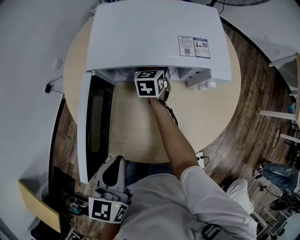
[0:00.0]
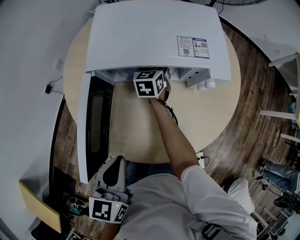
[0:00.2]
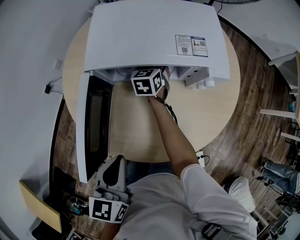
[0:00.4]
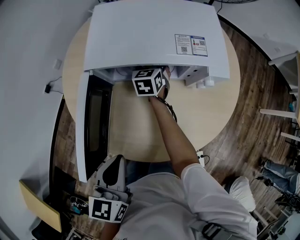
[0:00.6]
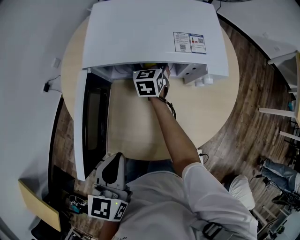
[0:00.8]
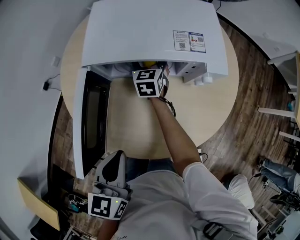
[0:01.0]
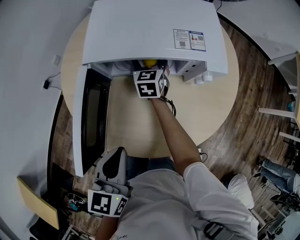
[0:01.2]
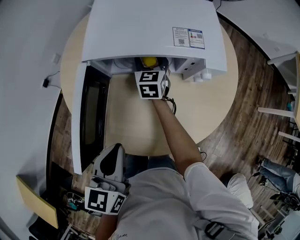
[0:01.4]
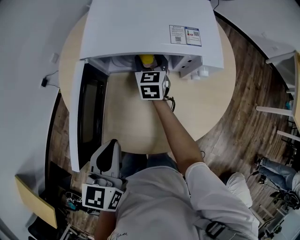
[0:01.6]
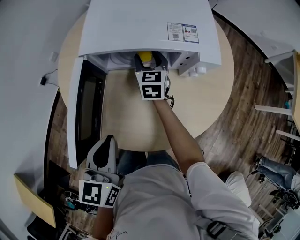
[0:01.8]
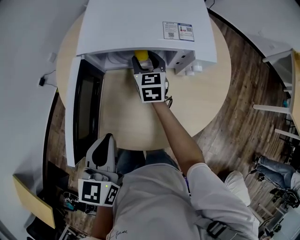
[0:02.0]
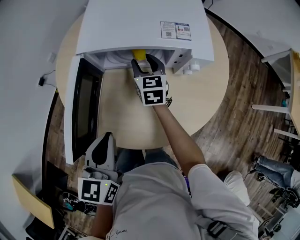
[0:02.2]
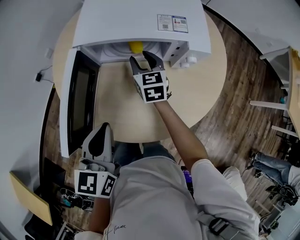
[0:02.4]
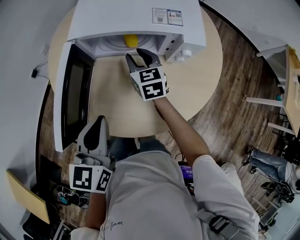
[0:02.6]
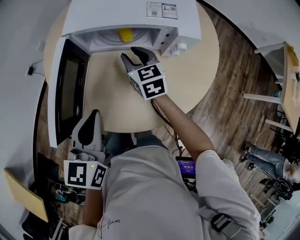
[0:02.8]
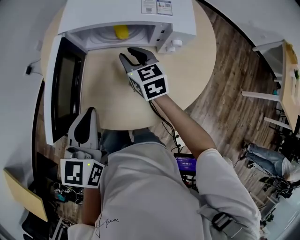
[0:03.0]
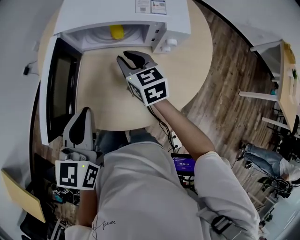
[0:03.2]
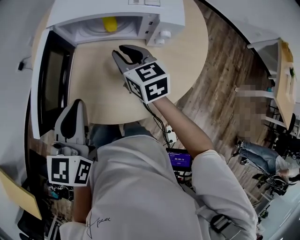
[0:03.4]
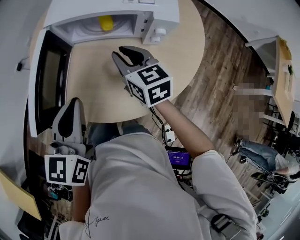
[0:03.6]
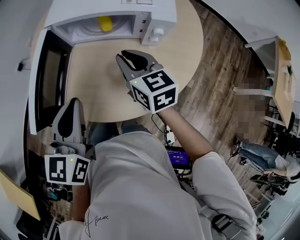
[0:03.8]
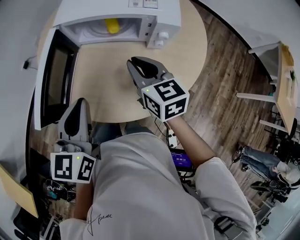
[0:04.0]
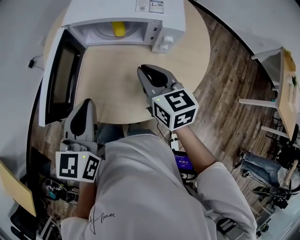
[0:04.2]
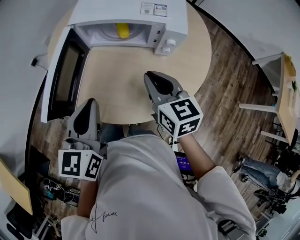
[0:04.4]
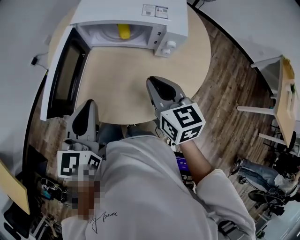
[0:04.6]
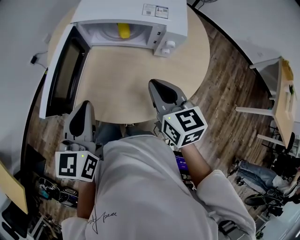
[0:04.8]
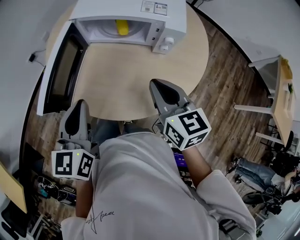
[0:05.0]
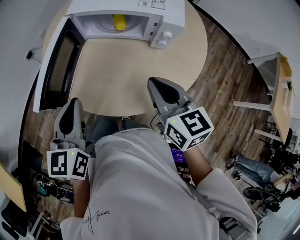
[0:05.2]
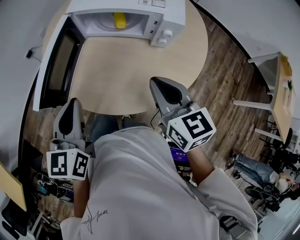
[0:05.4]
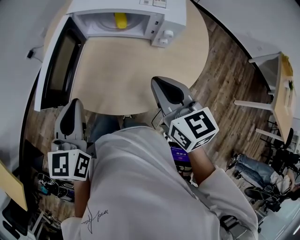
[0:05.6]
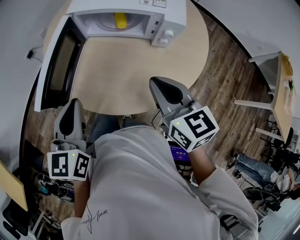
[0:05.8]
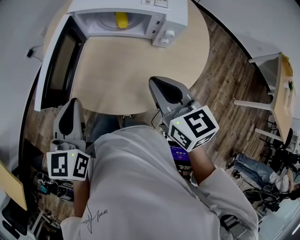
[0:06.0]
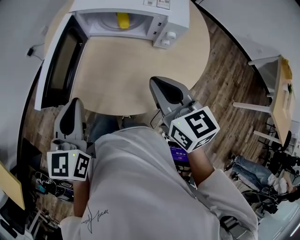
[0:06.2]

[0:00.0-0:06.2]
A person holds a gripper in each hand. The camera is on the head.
0:00.0 to 0:01.6: The right gripper ends up approximately 5 cm from where it was.
0:01.6 to 0:03.2: The right gripper moves backward and upward, some 15 cm, turns by about 20 degrees, and closes.
0:03.2 to 0:04.6: The left gripper moves approximately 5 cm, while the right gripper shifts approximately 15 cm backward, upward and to the right.
0:04.6 to 0:06.2: The right gripper changes place by some 5 cm.

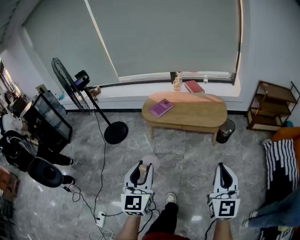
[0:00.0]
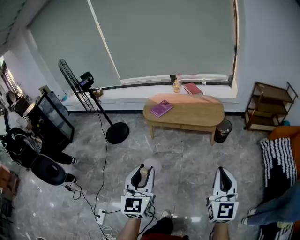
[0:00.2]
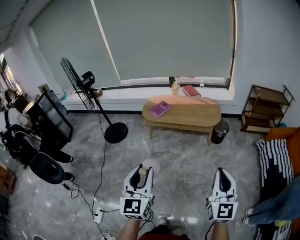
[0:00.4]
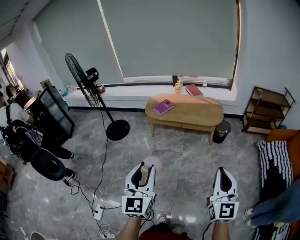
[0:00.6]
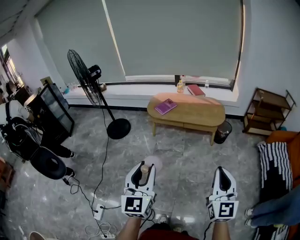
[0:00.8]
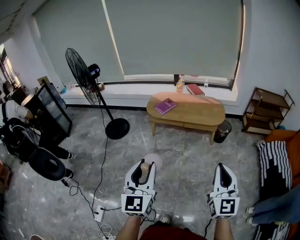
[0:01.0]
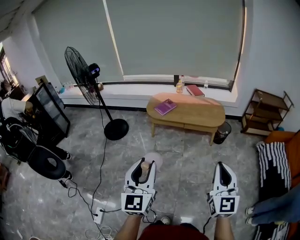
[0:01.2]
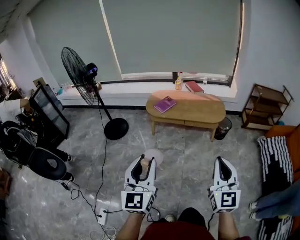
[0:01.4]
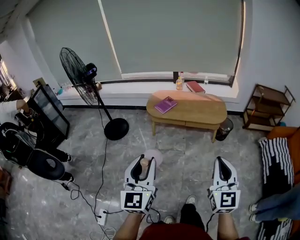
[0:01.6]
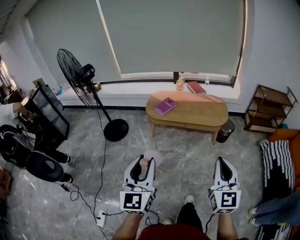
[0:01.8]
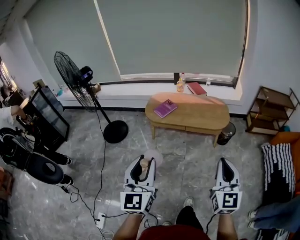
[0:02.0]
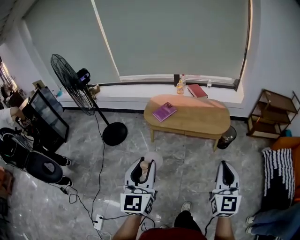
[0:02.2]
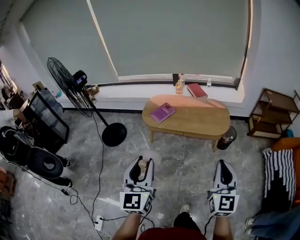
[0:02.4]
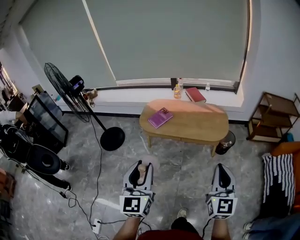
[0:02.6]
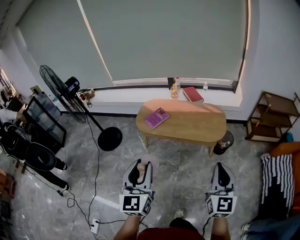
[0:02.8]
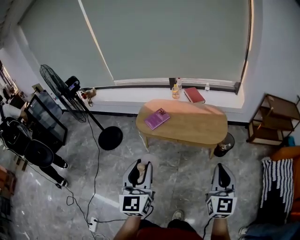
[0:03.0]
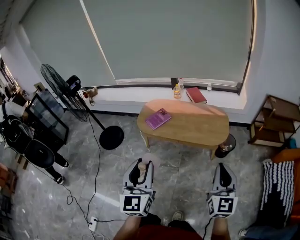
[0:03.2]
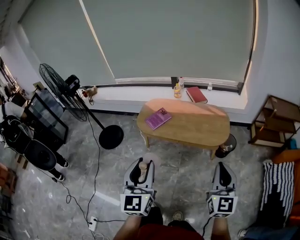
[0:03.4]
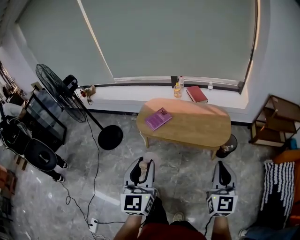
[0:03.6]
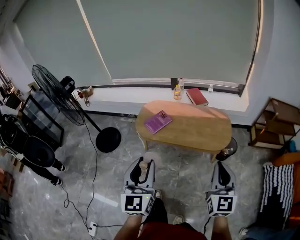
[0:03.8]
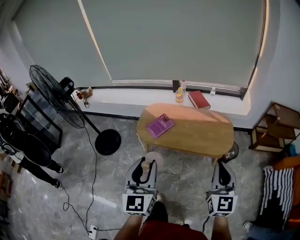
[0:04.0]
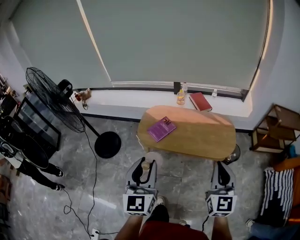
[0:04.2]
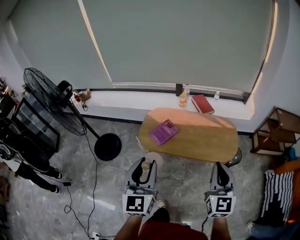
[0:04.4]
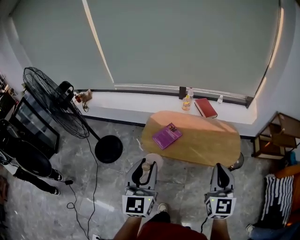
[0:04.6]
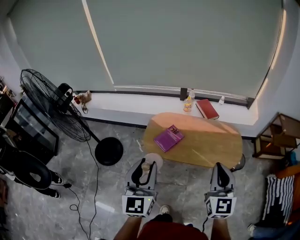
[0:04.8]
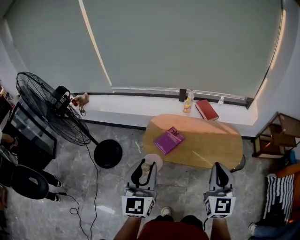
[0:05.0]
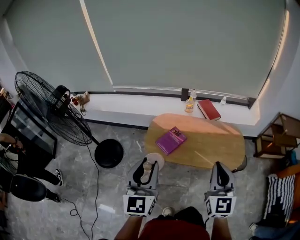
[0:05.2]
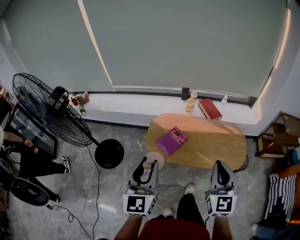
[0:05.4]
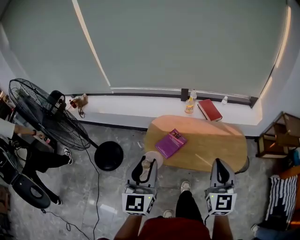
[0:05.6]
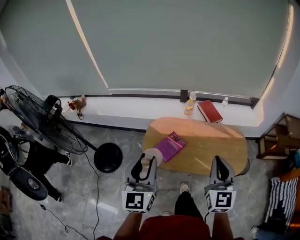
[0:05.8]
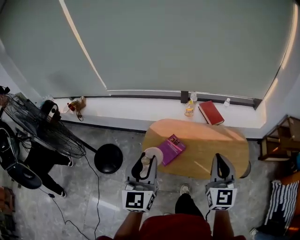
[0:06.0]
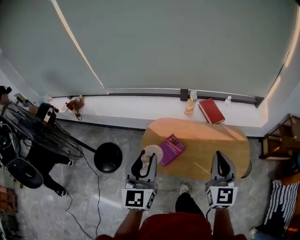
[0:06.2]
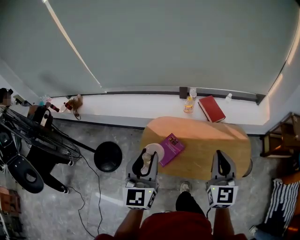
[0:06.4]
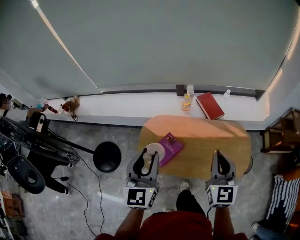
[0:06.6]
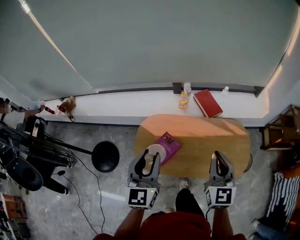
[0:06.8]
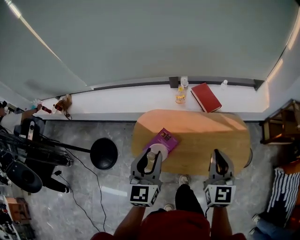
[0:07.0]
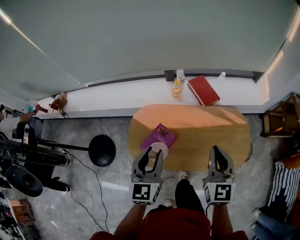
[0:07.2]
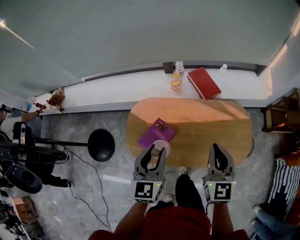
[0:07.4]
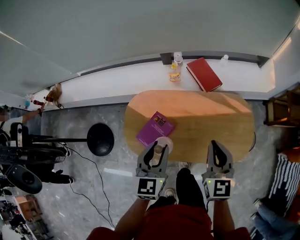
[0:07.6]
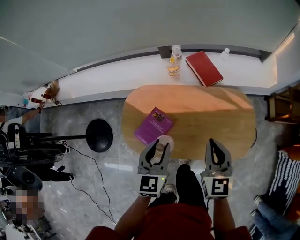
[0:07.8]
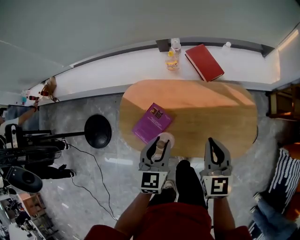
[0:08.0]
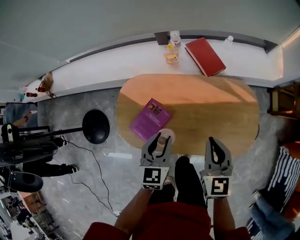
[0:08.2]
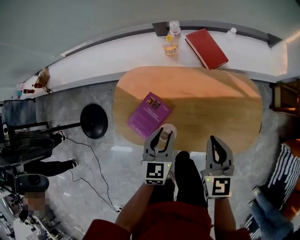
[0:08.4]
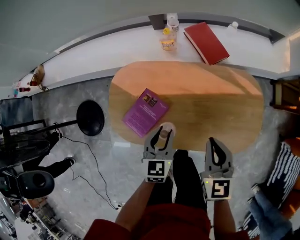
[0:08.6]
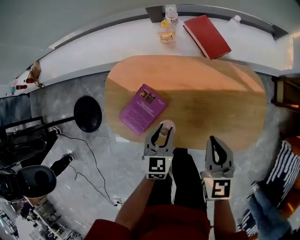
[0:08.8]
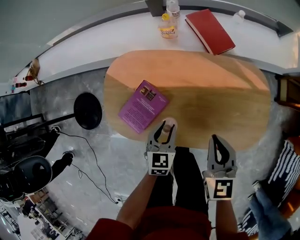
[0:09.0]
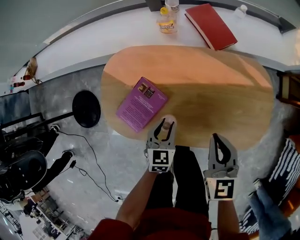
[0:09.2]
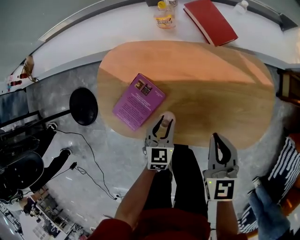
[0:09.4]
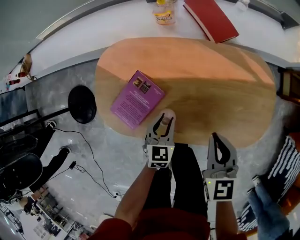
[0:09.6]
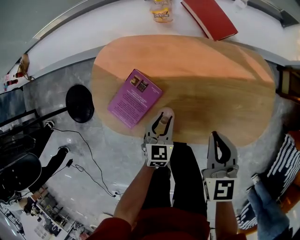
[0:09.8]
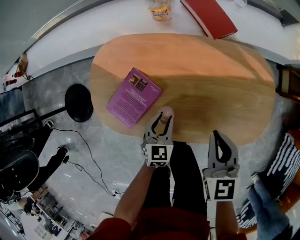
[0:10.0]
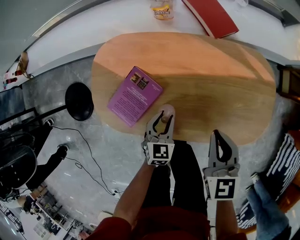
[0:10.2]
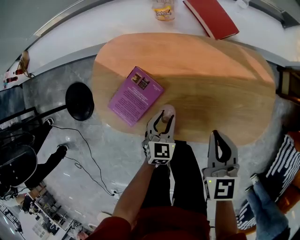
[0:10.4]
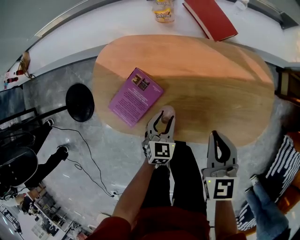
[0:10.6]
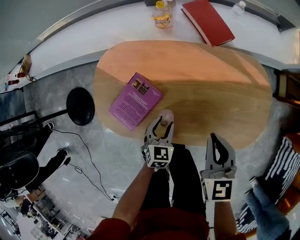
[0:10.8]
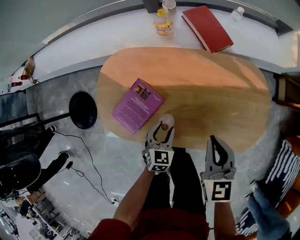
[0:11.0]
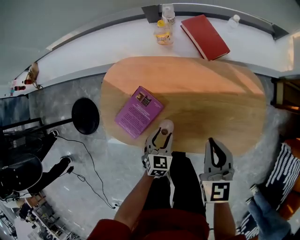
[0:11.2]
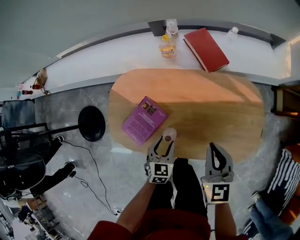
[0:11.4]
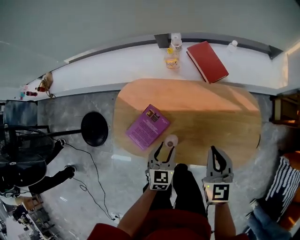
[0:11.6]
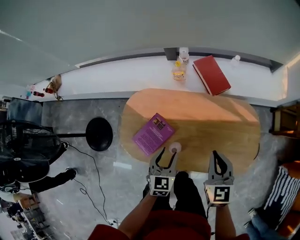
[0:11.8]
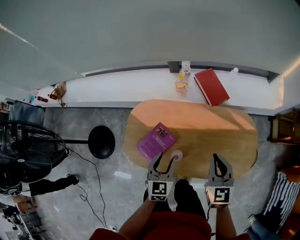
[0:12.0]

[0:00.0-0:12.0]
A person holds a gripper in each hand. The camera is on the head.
0:00.0 to 0:01.6: The right gripper shifts roughly 15 cm to the left and backward, while the left gripper is displaced to the left, backward and upward by approximately 15 cm.
0:01.6 to 0:03.0: Both grippers move forward and to the right, approximately 30 cm.
0:03.0 to 0:04.4: The grippers both shift forward and to the left by approximately 25 cm.
0:04.4 to 0:06.0: Both grippers move forward, about 25 cm.
0:06.0 to 0:07.6: The grippers both shift downward, forward and to the right by roughly 30 cm. The left gripper rotates approximately 30 degrees.
0:07.6 to 0:09.0: The left gripper goes about 30 cm downward, while the right gripper moves downward, about 20 cm.
0:09.0 to 0:10.4: The left gripper is displaced downward by approximately 10 cm.
0:10.4 to 0:12.0: The right gripper shifts approximately 15 cm upward. The left gripper heads upward, covering roughly 25 cm.

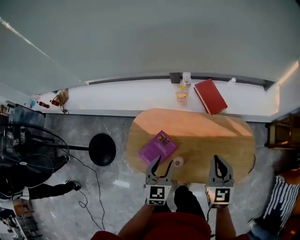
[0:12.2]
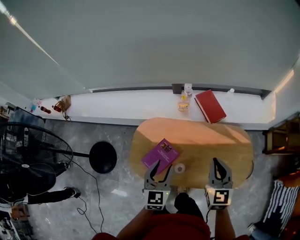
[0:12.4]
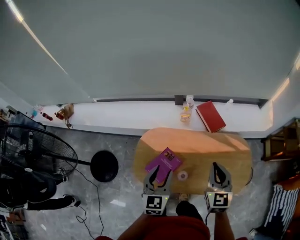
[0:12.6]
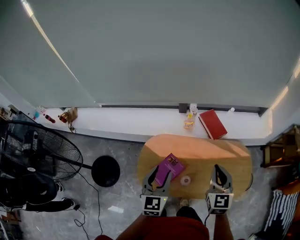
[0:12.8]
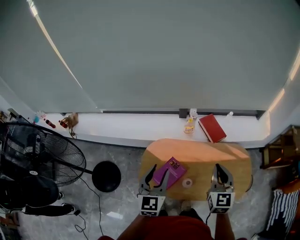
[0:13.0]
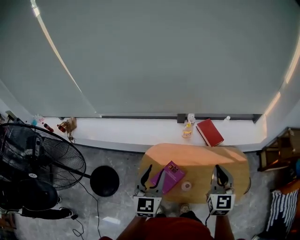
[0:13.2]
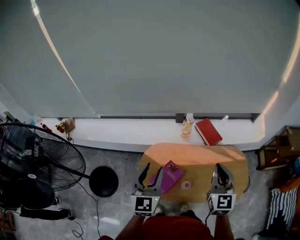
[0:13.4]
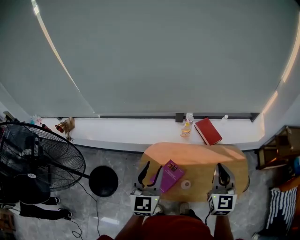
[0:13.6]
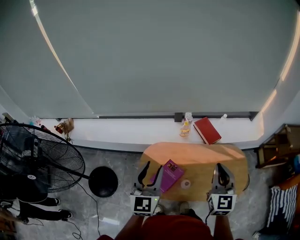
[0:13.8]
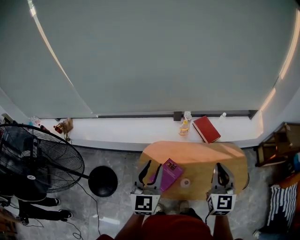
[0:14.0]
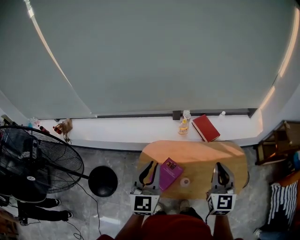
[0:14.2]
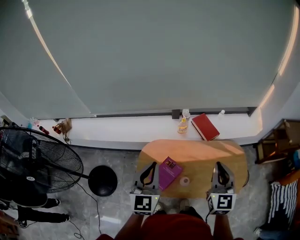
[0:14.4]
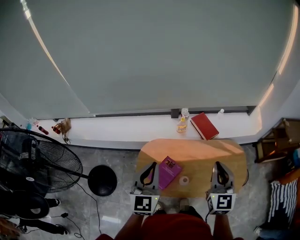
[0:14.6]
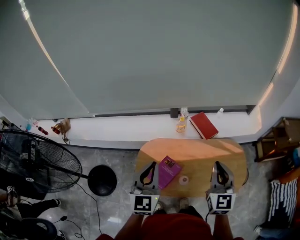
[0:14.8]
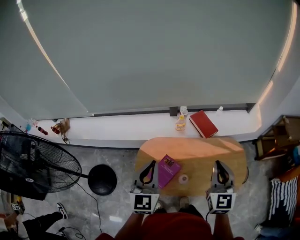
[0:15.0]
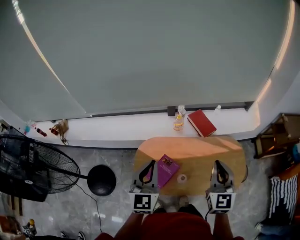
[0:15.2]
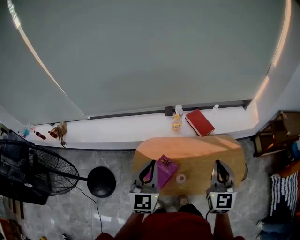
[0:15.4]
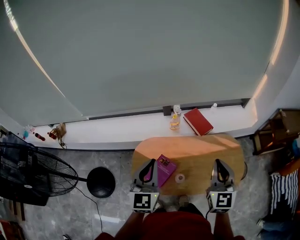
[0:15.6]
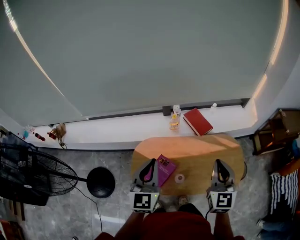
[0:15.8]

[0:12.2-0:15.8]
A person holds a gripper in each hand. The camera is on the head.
0:12.2 to 0:14.0: The grippers both shift upward and to the left by about 25 cm. The left gripper rotates about 20 degrees.
0:14.0 to 0:15.8: The grippers both shift to the right by about 5 cm. The left gripper closes up.

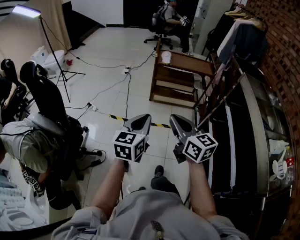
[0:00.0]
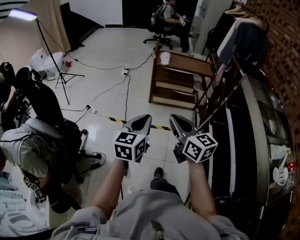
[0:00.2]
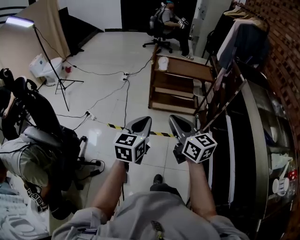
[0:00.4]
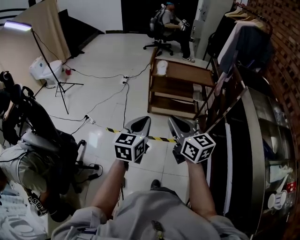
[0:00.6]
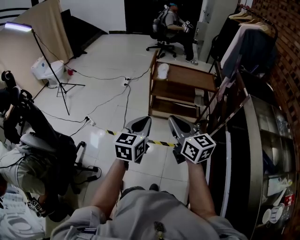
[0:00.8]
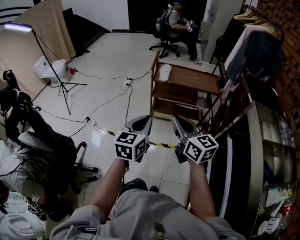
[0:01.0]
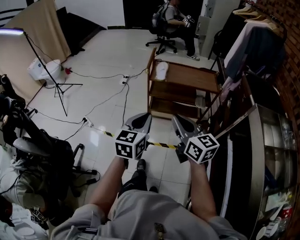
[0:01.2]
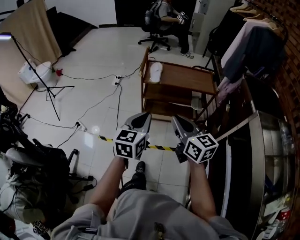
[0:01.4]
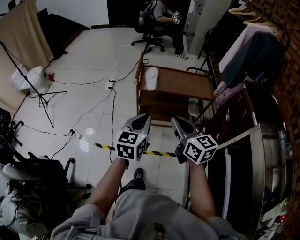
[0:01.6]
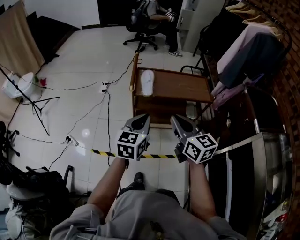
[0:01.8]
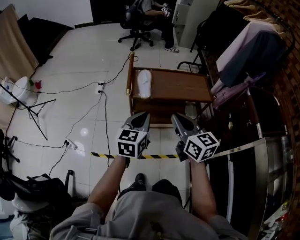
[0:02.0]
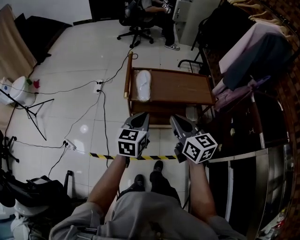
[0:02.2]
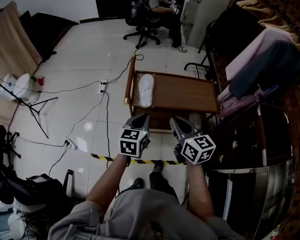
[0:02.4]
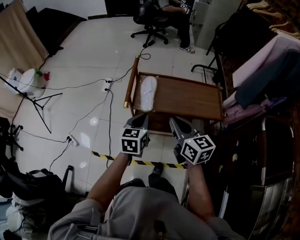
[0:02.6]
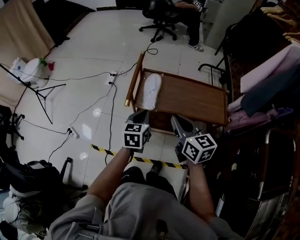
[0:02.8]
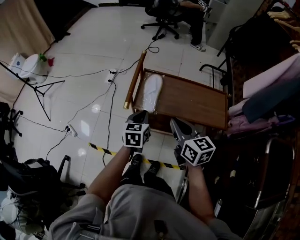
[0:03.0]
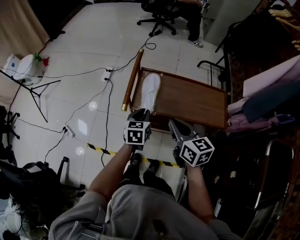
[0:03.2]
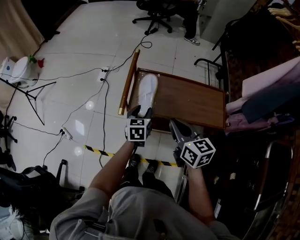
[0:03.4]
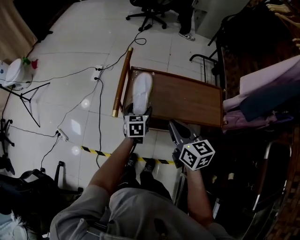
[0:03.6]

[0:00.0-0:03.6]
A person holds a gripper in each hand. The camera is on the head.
0:00.0 to 0:01.8: The pair of grippers is taken forward, roughly 50 cm.
0:01.8 to 0:03.6: The grippers both shift forward and downward by roughly 35 cm. The left gripper turns by about 30 degrees, and opens.
